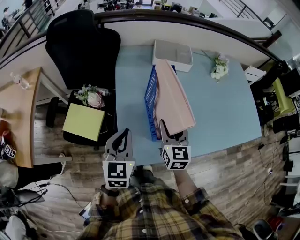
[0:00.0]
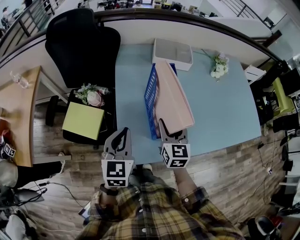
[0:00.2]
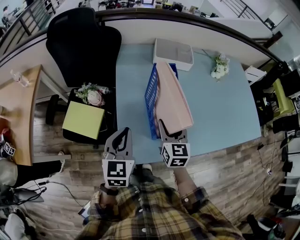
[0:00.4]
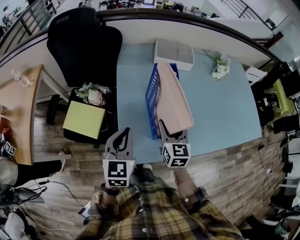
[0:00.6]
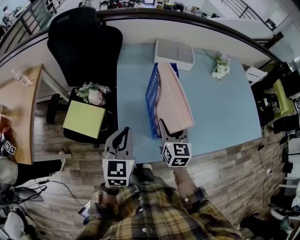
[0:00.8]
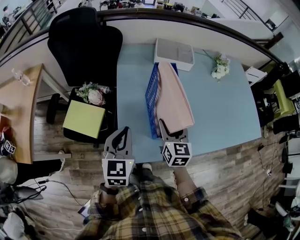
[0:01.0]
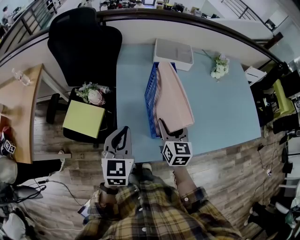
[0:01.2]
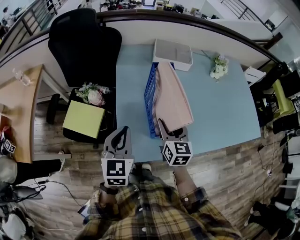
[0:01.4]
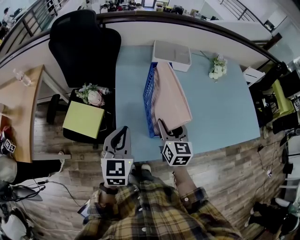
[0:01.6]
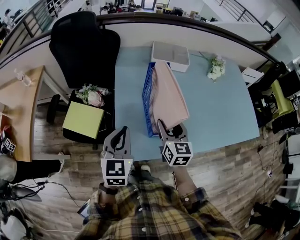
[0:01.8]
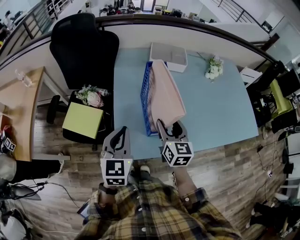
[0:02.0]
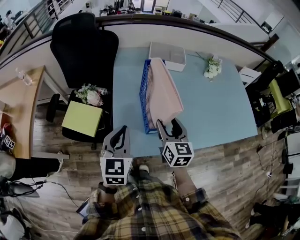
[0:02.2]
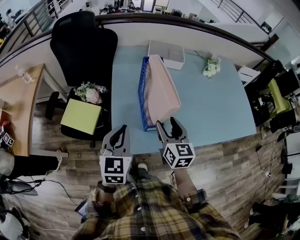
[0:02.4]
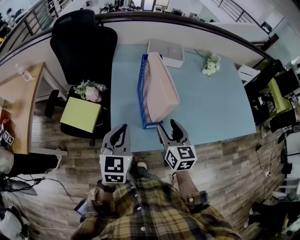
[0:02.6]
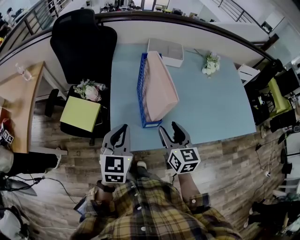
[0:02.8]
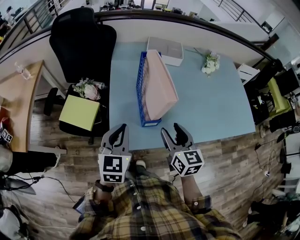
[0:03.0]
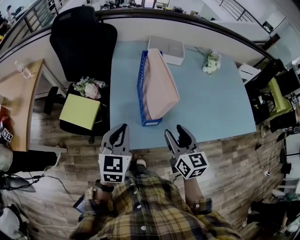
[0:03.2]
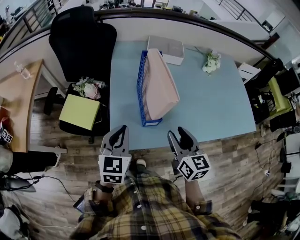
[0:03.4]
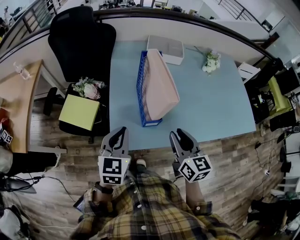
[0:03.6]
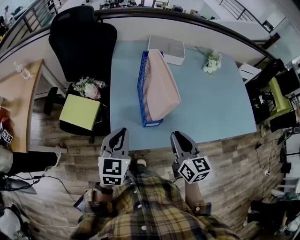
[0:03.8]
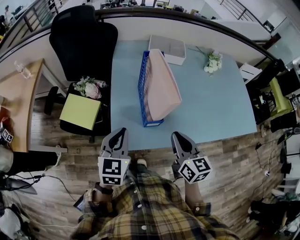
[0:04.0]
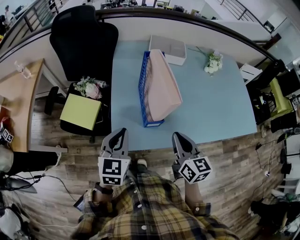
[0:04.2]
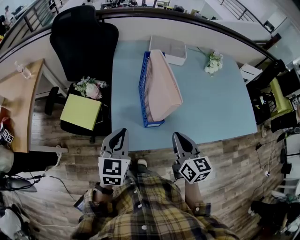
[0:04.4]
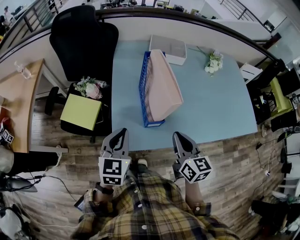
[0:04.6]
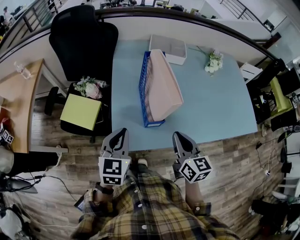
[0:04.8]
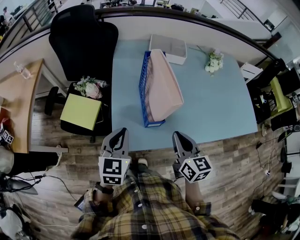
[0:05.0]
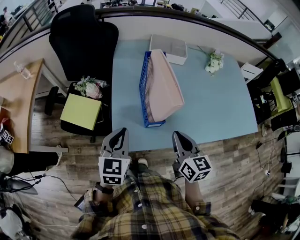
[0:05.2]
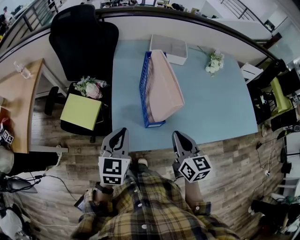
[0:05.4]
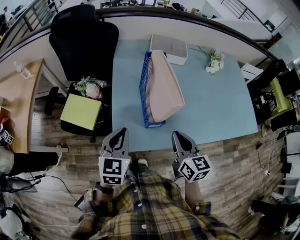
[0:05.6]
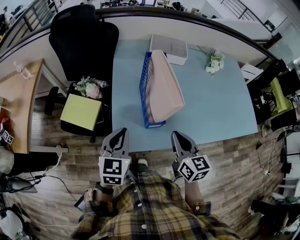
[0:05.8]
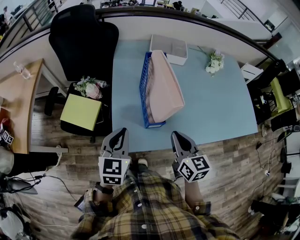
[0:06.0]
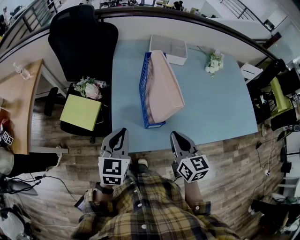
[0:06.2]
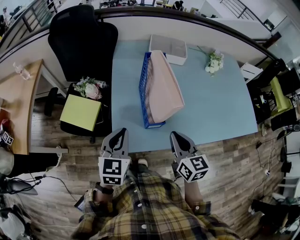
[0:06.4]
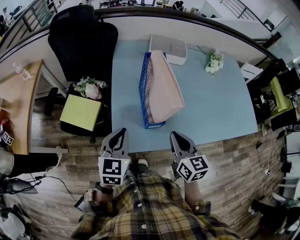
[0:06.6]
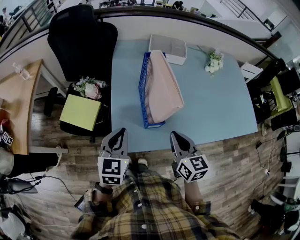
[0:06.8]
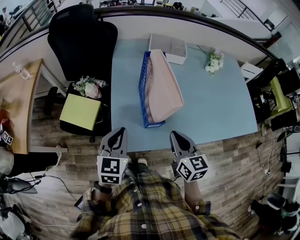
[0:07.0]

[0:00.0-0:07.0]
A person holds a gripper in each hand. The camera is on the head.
0:00.0 to 0:01.4: The grippers stay close to where they were, moving slightly.
0:01.4 to 0:02.8: The left gripper is displaced backward by about 5 cm; the right gripper heads backward, covering some 10 cm.
0:02.8 to 0:04.2: The right gripper closes its fingers.
0:04.2 to 0:05.6: Neither gripper changes place.
0:05.6 to 0:07.0: Both grippers stay about where they are.

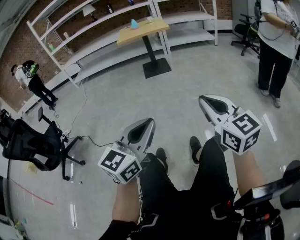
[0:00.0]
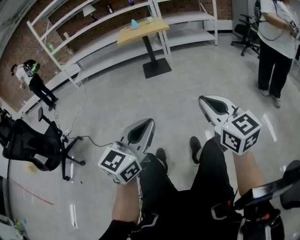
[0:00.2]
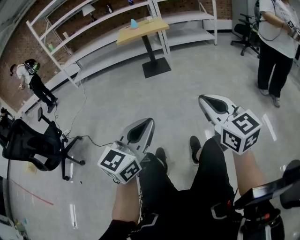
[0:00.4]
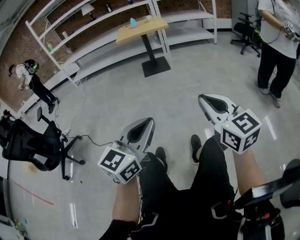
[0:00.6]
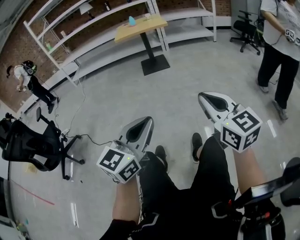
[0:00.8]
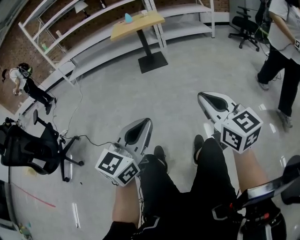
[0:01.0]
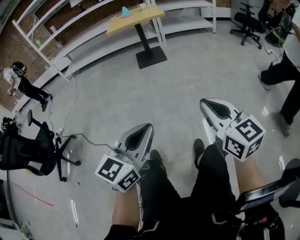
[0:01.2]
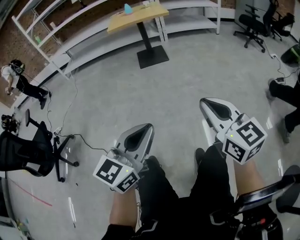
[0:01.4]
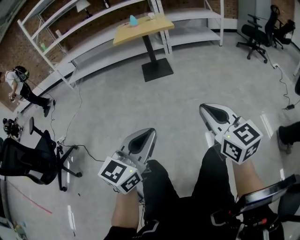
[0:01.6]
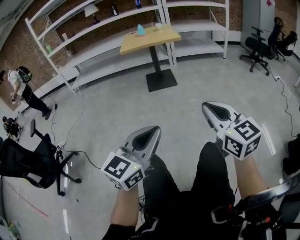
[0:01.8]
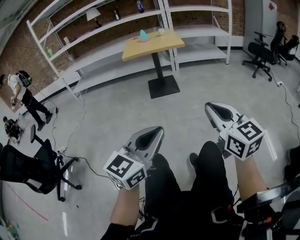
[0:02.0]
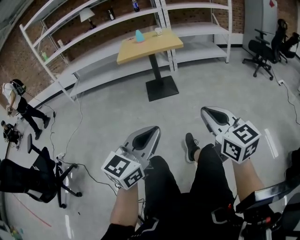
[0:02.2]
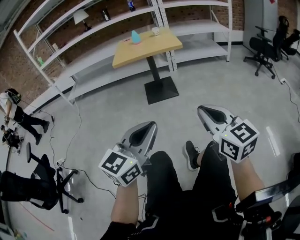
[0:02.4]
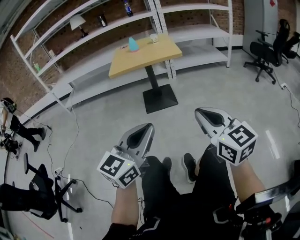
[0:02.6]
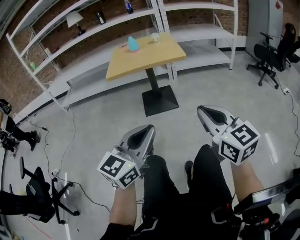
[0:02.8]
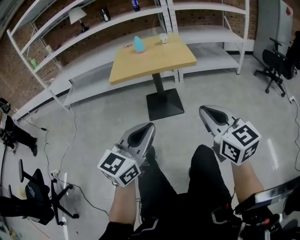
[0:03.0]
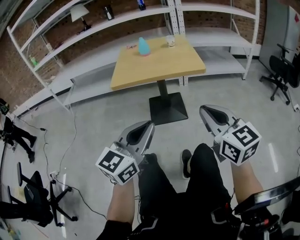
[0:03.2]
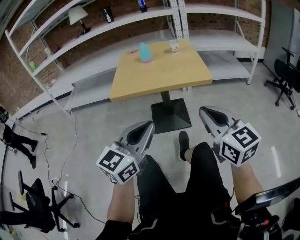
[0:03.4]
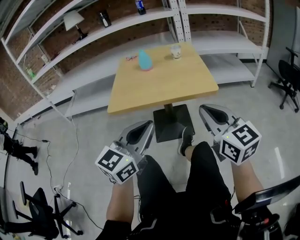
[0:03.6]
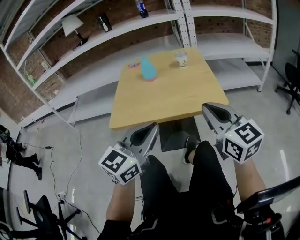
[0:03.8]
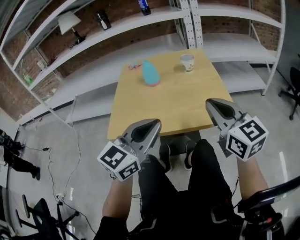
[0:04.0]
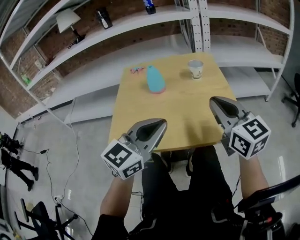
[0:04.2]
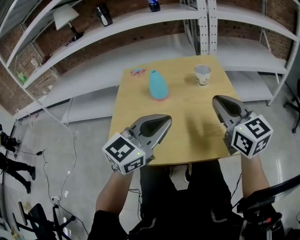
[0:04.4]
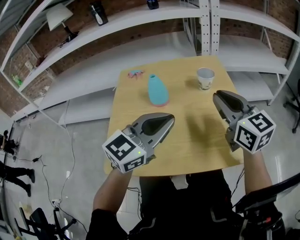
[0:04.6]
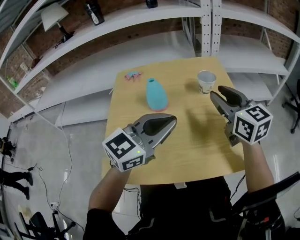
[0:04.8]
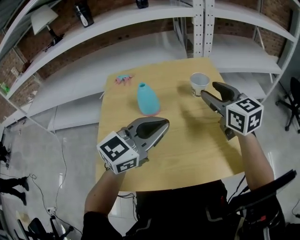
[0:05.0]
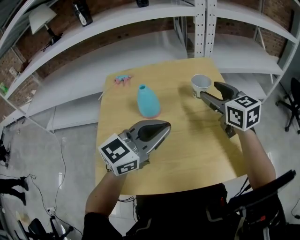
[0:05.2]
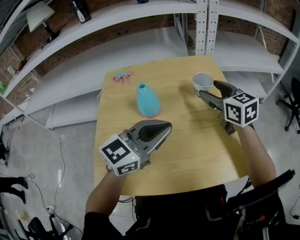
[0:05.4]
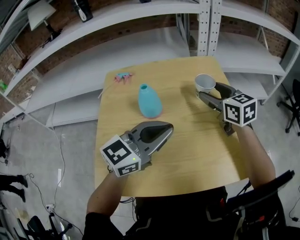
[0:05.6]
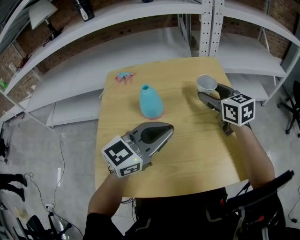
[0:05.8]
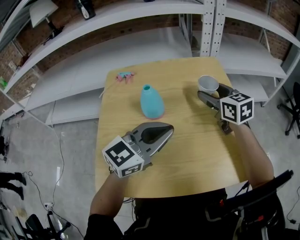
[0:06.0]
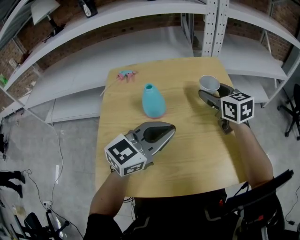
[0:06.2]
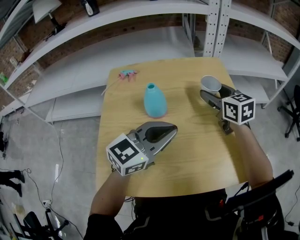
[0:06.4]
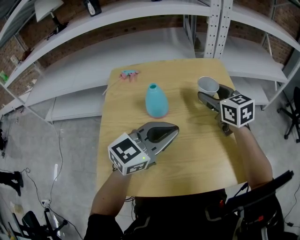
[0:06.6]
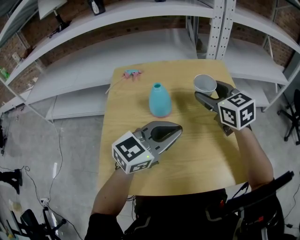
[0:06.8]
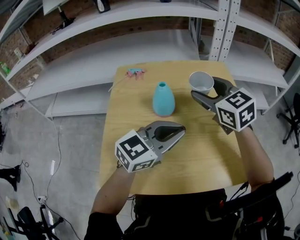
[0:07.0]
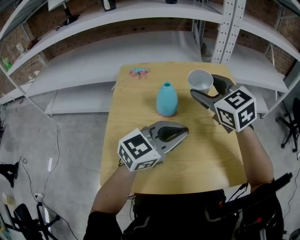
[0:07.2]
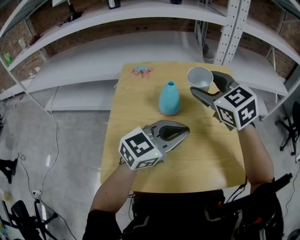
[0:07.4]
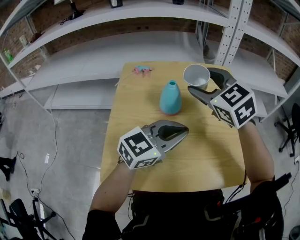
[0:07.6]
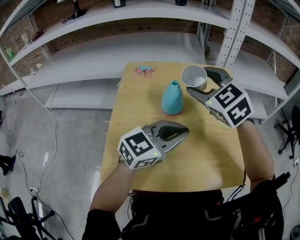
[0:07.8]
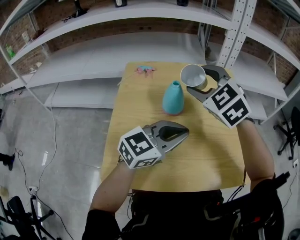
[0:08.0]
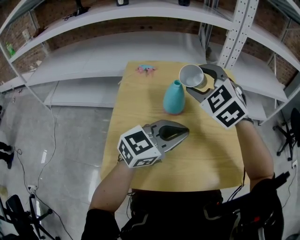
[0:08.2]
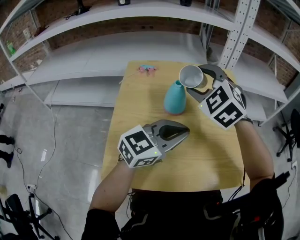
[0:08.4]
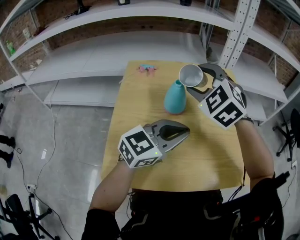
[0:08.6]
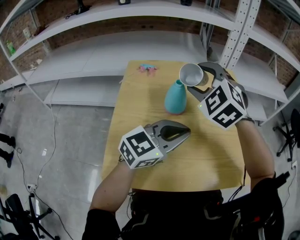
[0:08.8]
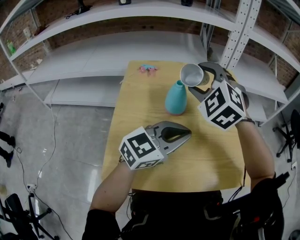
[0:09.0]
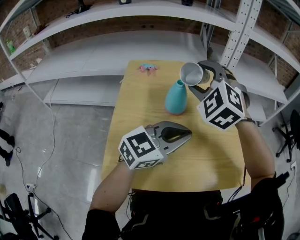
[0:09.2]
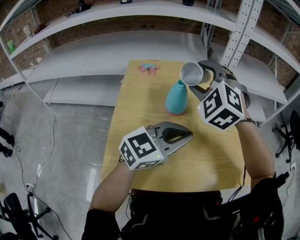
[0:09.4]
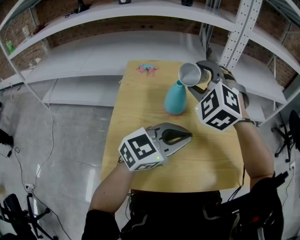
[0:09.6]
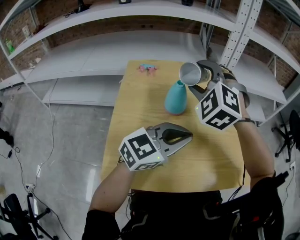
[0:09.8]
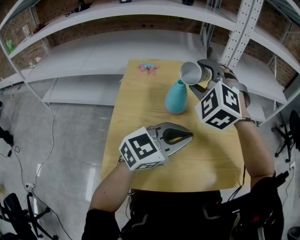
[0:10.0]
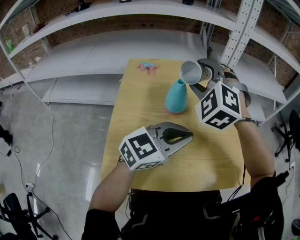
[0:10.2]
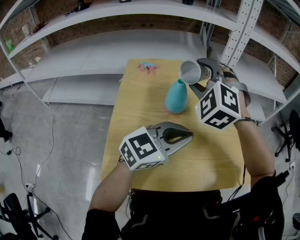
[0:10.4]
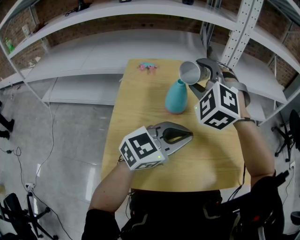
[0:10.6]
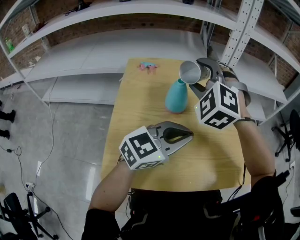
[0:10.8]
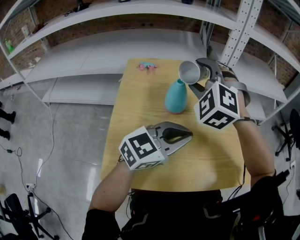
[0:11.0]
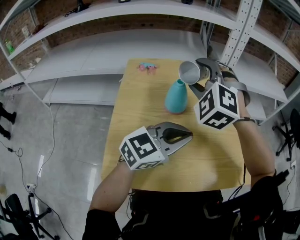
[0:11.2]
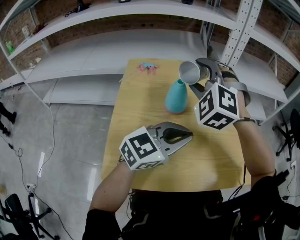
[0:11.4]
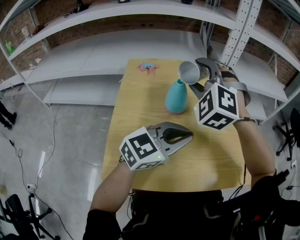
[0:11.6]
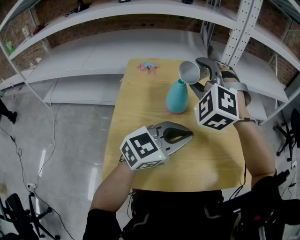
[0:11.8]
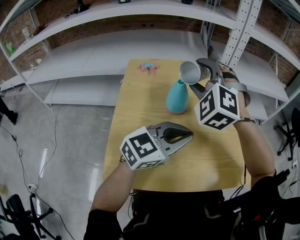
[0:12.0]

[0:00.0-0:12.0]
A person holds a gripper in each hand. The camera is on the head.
0:00.0 to 0:01.6: The two grippers go about 15 cm forward.
0:01.6 to 0:03.0: The pair of grippers is taken forward, about 50 cm.
0:03.0 to 0:04.4: The pair of grippers is taken forward, approximately 60 cm.
0:04.4 to 0:06.0: The left gripper heads forward and downward, covering roughly 10 cm; the right gripper heads forward and downward, covering roughly 25 cm, and opens up.
0:06.0 to 0:07.6: The right gripper heads to the left, upward and backward, covering roughly 20 cm, and changes its angle by about 30 degrees.
0:07.6 to 0:09.0: The right gripper changes its angle by some 30 degrees.
0:09.0 to 0:10.4: The grippers stay close to where they were, moving slightly.
0:10.4 to 0:12.0: Neither gripper changes place.

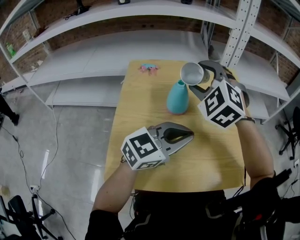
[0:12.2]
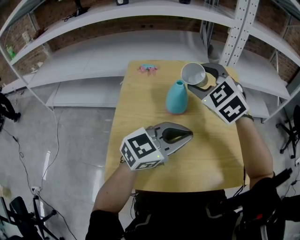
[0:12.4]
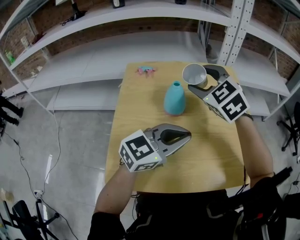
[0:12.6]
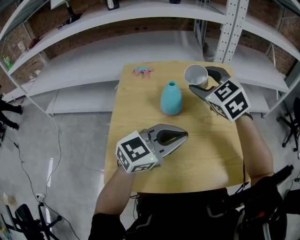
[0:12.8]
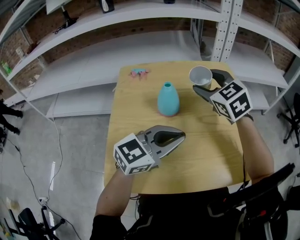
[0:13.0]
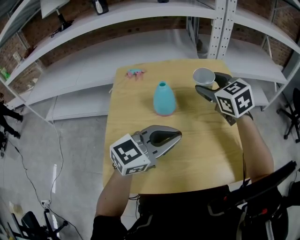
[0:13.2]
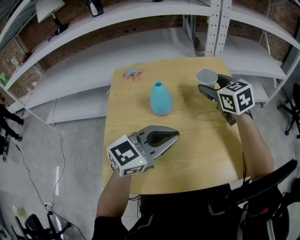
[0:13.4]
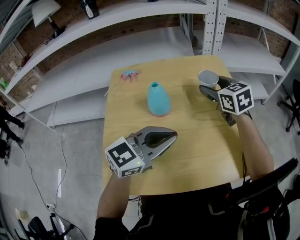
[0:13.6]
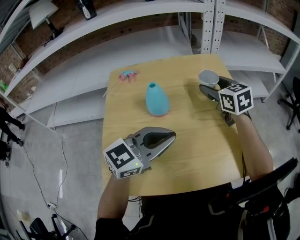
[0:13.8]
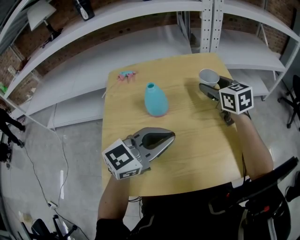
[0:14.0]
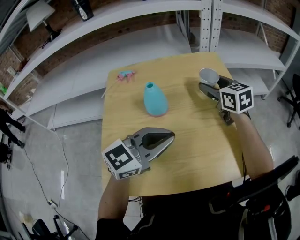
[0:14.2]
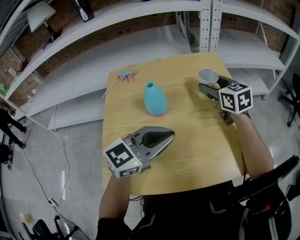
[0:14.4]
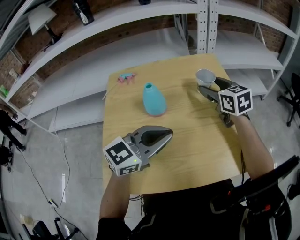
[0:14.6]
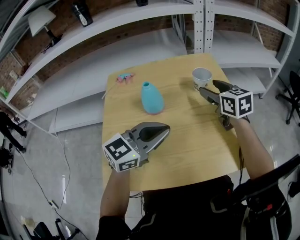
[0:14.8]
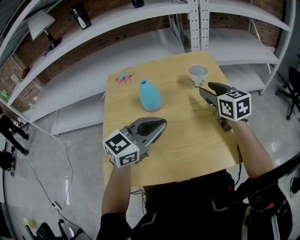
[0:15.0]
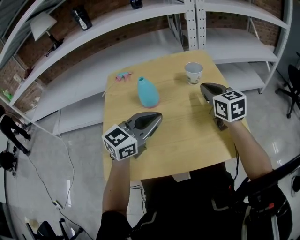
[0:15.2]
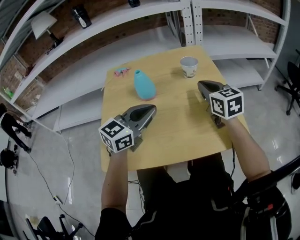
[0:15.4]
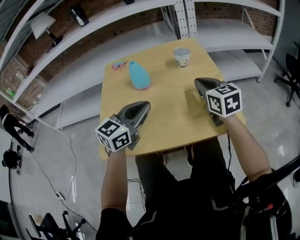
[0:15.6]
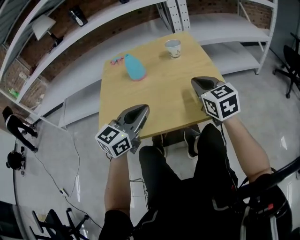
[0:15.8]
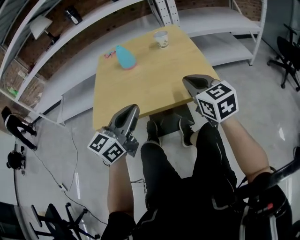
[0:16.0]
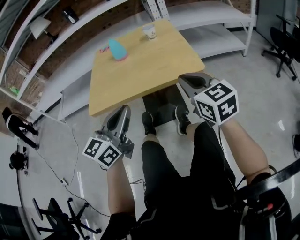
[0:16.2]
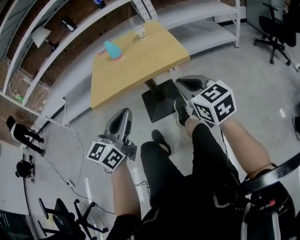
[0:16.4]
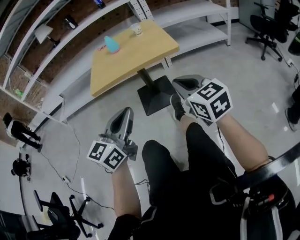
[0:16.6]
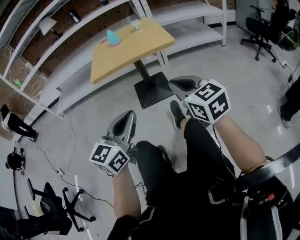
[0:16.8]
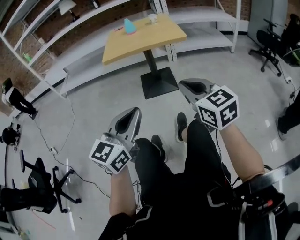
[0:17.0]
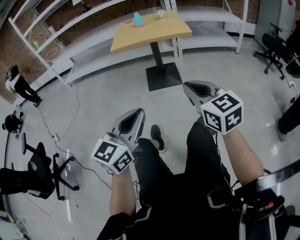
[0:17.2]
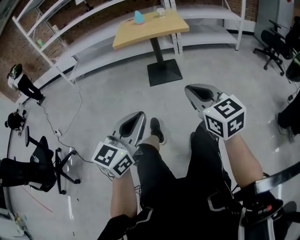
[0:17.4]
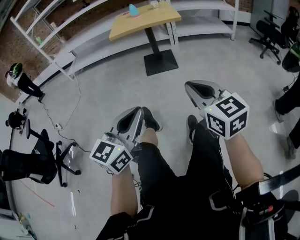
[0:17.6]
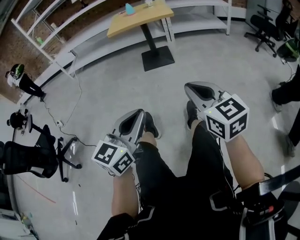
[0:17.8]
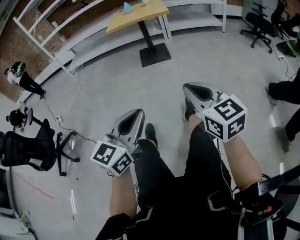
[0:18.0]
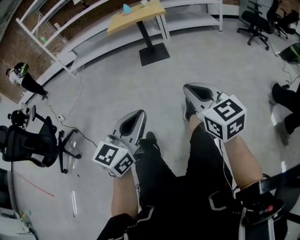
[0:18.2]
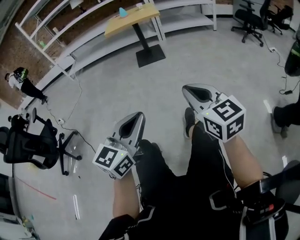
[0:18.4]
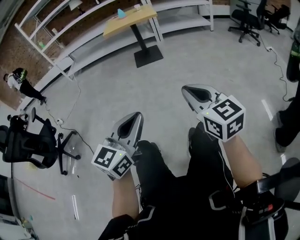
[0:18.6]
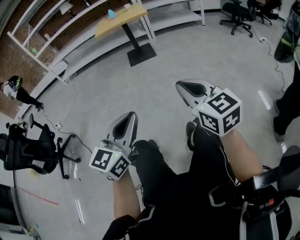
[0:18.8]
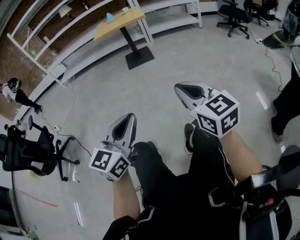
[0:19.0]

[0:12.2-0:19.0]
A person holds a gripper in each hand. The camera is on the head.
0:12.2 to 0:13.6: The right gripper travels to the right, forward and downward by approximately 20 cm, and rolls clockwise, seen from behind, by about 50 degrees.
0:13.6 to 0:15.0: The right gripper goes about 5 cm to the right.
0:15.0 to 0:16.2: Both grippers move backward, about 30 cm. The left gripper turns by roughly 30 degrees. The right gripper closes.
0:16.2 to 0:17.6: The two grippers travel together, backward, approximately 70 cm.
0:17.6 to 0:19.0: Both grippers travel together backward, about 35 cm.
